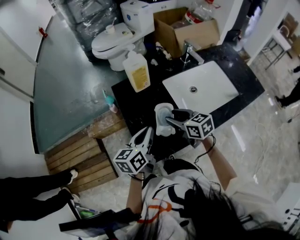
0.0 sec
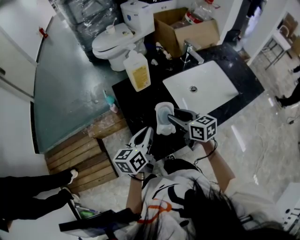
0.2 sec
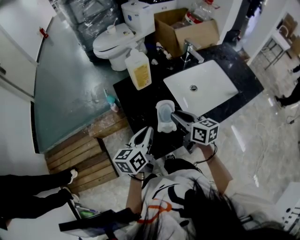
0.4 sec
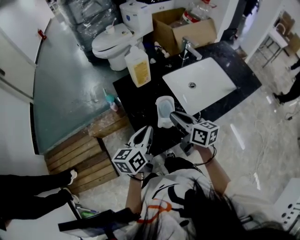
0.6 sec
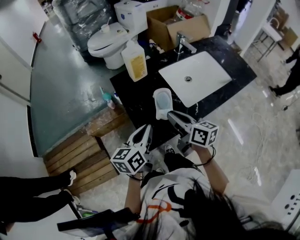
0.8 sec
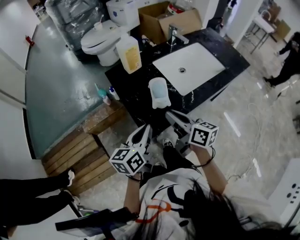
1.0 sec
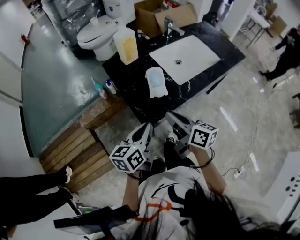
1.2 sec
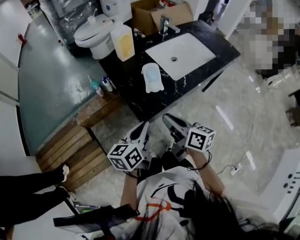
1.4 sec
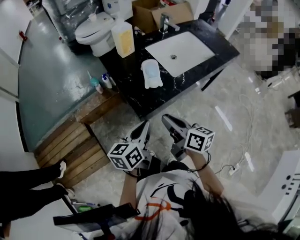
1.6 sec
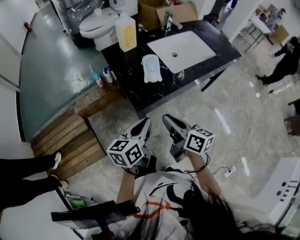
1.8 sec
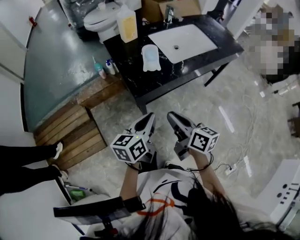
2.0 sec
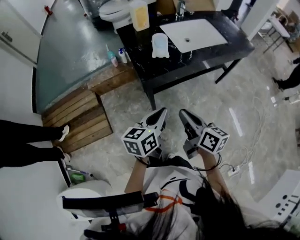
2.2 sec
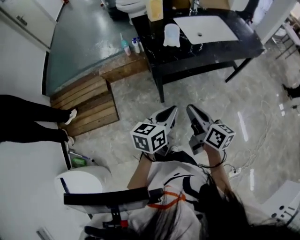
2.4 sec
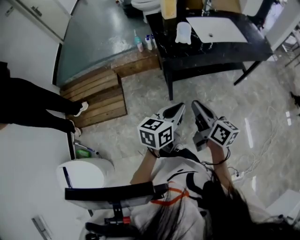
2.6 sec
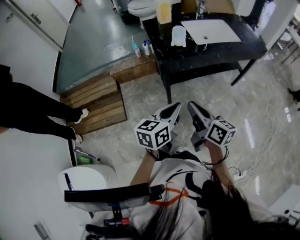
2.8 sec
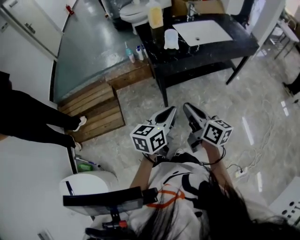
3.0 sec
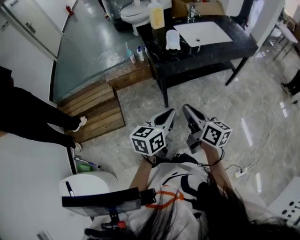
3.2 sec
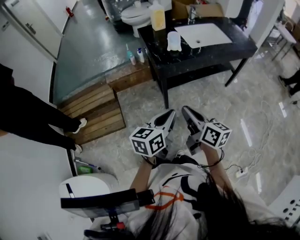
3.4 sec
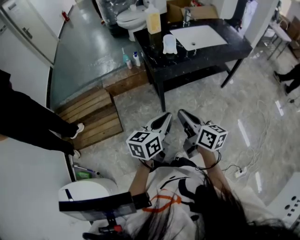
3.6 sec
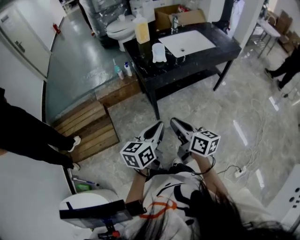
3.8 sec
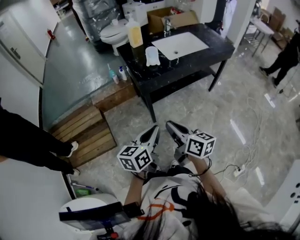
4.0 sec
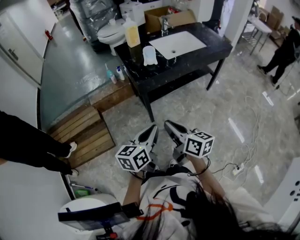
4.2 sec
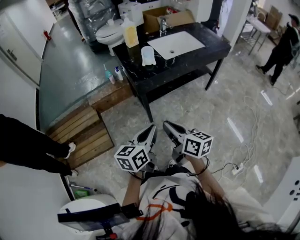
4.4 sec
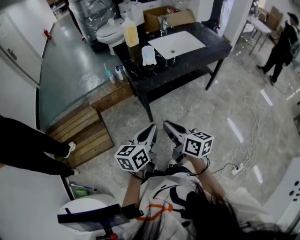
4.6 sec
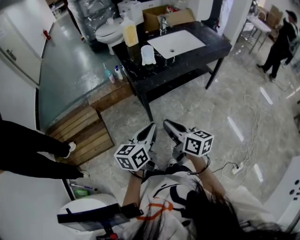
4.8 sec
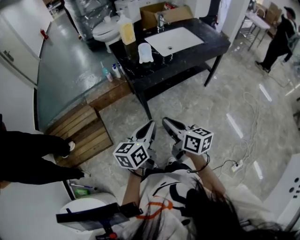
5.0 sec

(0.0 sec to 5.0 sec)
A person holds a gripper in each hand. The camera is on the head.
0.0 sec - 1.6 sec: The grippers both shift backward by about 25 cm. The right gripper turns by about 40 degrees, and closes its fingers.
1.6 sec - 3.4 sec: Both grippers travel together backward, roughly 25 cm.
3.4 sec - 5.0 sec: The grippers move only a little.

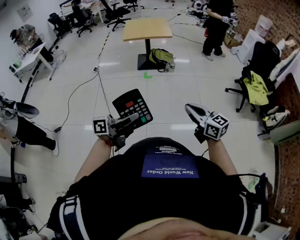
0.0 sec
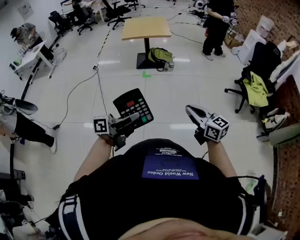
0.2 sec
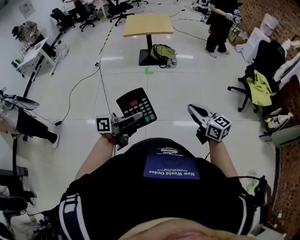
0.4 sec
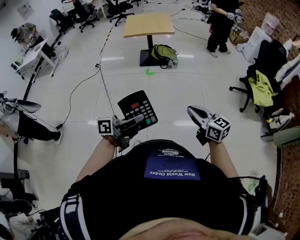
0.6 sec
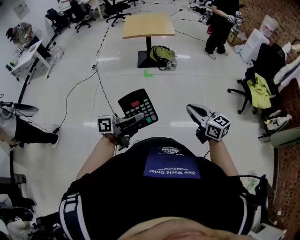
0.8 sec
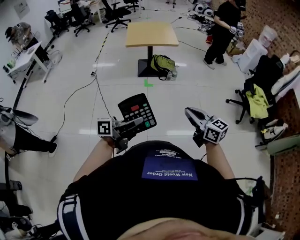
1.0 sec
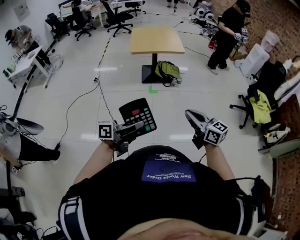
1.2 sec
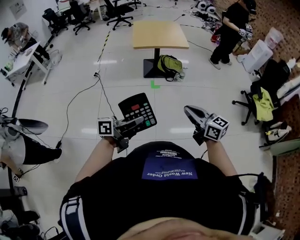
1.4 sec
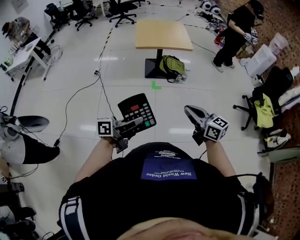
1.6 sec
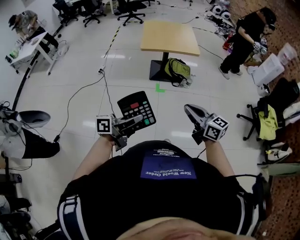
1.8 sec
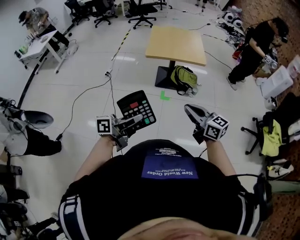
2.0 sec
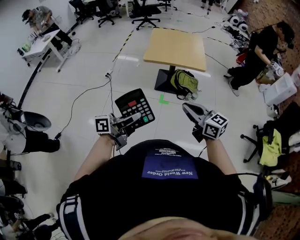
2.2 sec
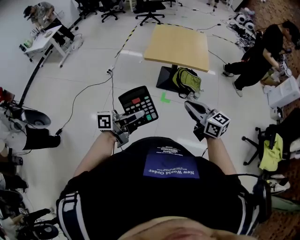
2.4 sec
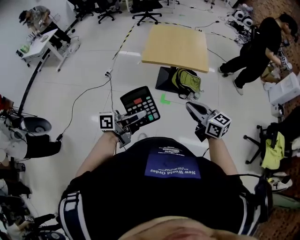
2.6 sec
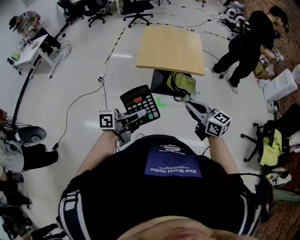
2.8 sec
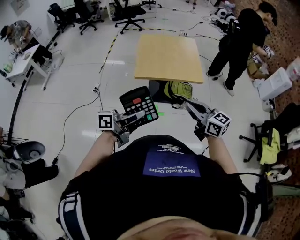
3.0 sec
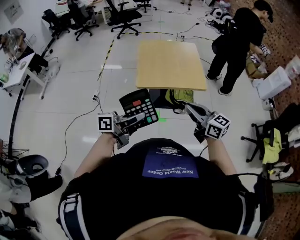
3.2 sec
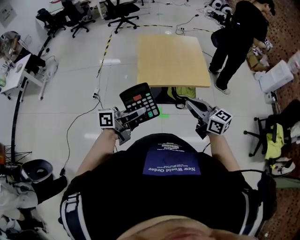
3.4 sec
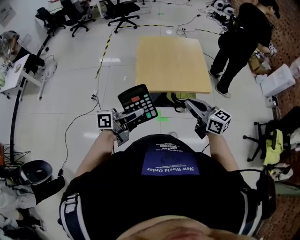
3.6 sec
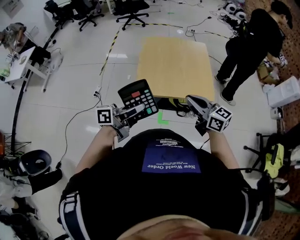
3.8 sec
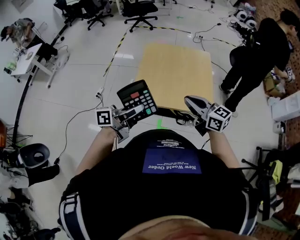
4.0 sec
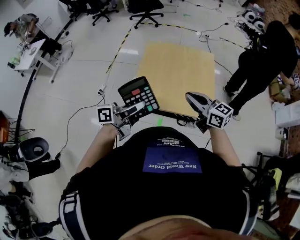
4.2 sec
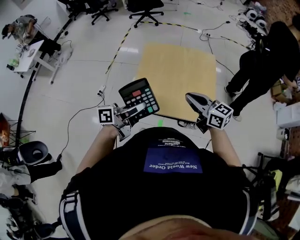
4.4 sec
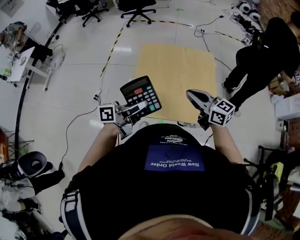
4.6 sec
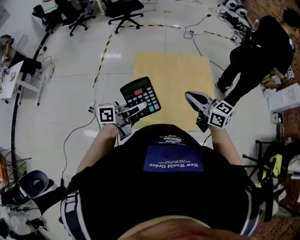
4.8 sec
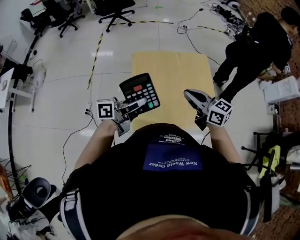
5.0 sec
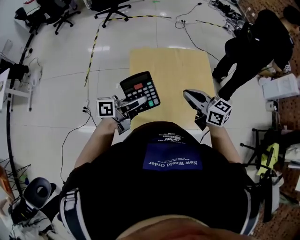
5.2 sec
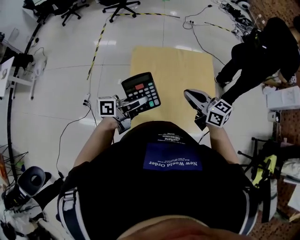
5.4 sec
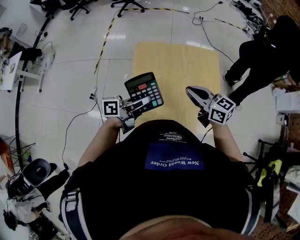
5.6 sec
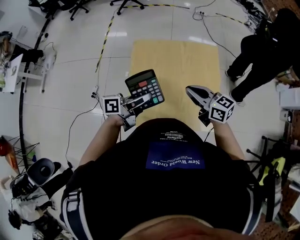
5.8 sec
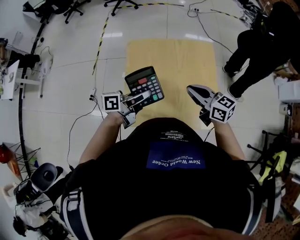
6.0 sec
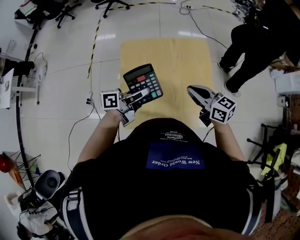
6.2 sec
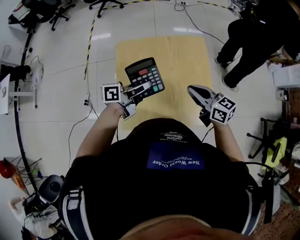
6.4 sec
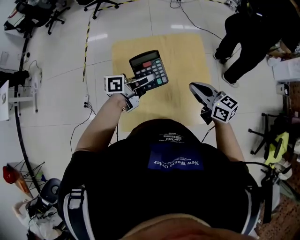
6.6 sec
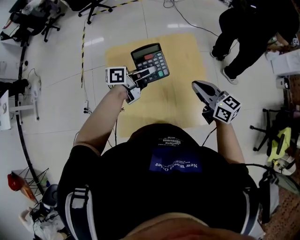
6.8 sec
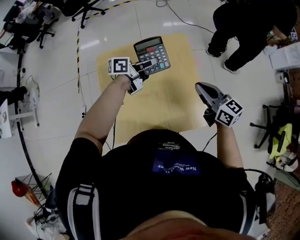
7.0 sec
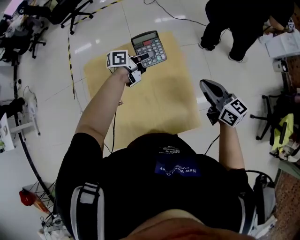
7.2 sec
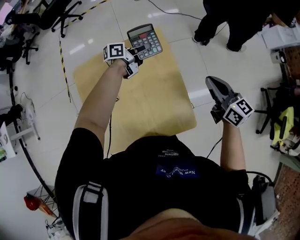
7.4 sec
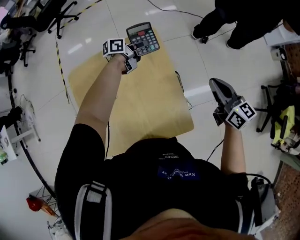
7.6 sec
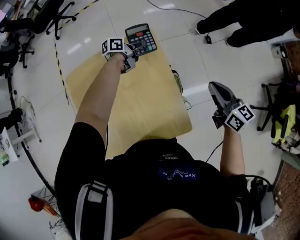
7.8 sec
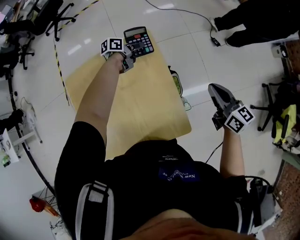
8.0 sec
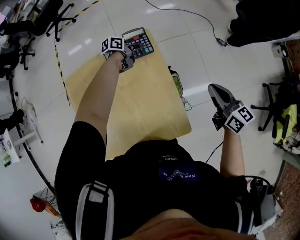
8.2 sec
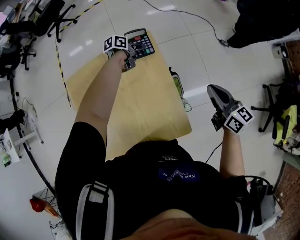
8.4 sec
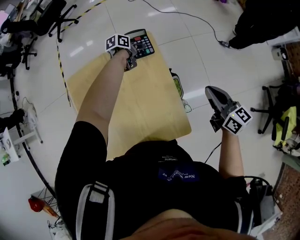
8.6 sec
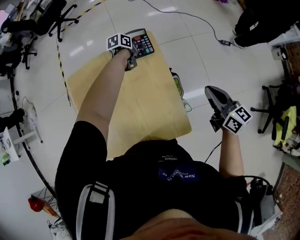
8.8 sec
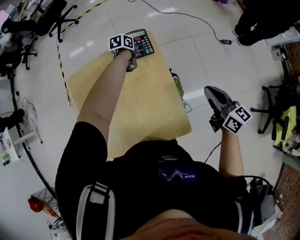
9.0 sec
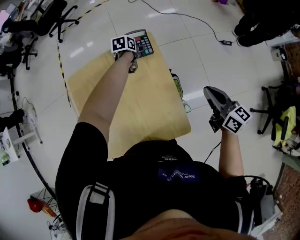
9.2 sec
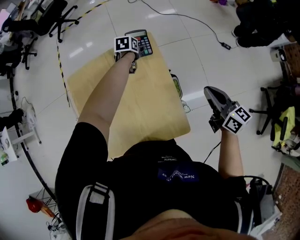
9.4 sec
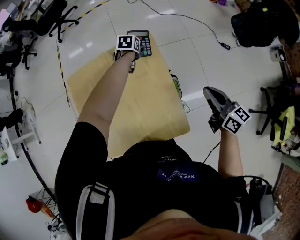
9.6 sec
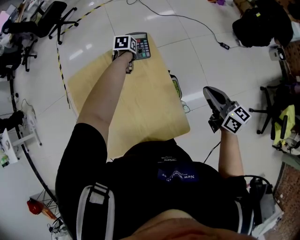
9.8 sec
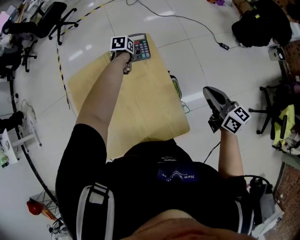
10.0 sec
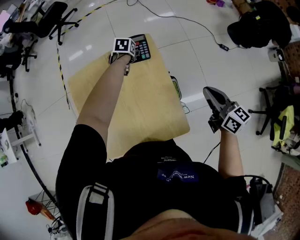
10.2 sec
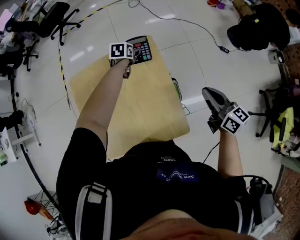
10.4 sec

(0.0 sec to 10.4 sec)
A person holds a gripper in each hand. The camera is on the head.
0.0 sec - 1.4 sec: Both grippers travel together to the left and forward, about 30 cm.
1.4 sec - 3.0 sec: The two grippers travel together, forward, some 50 cm.
3.0 sec - 4.4 sec: The grippers both shift forward by roughly 35 cm.
4.4 sec - 6.0 sec: Both grippers move forward, about 20 cm.
6.0 sec - 7.4 sec: The left gripper shifts by approximately 40 cm; the right gripper moves approximately 35 cm, and swivels approximately 30 degrees.
7.4 sec - 9.0 sec: The left gripper moves downward and forward, roughly 15 cm, tilts its fingers roughly 40 degrees downward, and opens its fingers; the right gripper ends up about 5 cm from where it was.
9.0 sec - 10.4 sec: The left gripper ends up some 5 cm from where it was, and changes its angle by some 20 degrees.

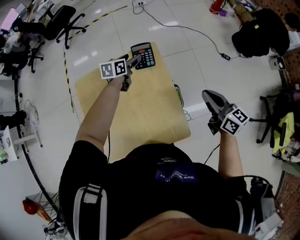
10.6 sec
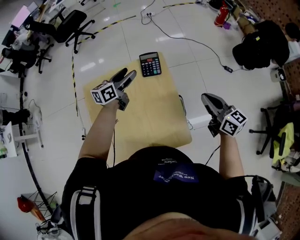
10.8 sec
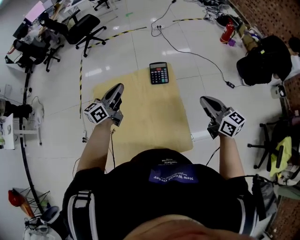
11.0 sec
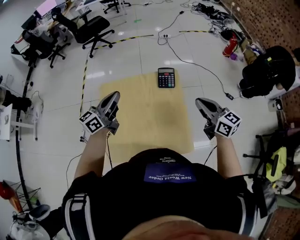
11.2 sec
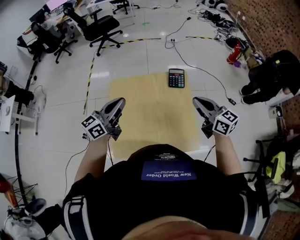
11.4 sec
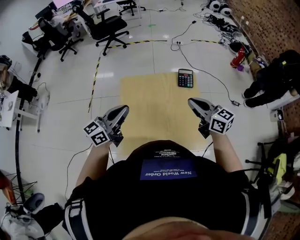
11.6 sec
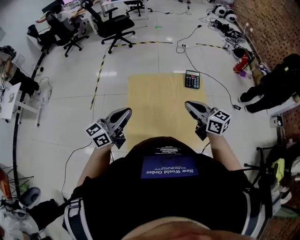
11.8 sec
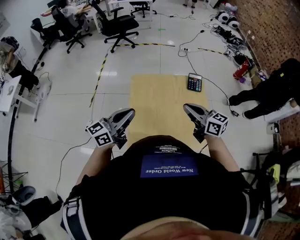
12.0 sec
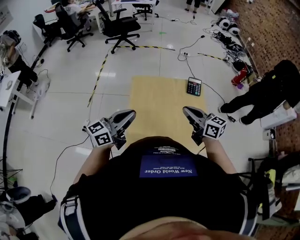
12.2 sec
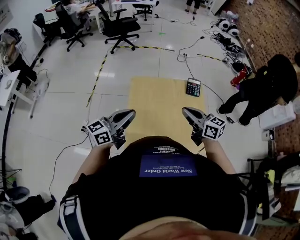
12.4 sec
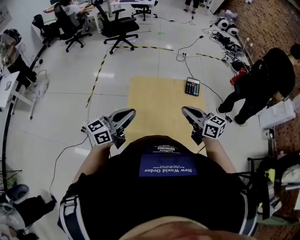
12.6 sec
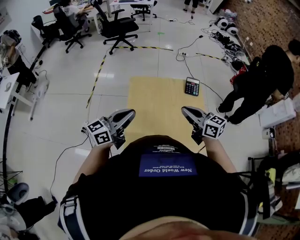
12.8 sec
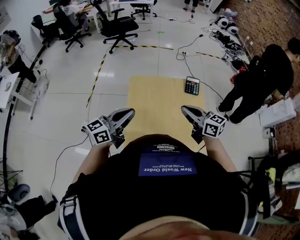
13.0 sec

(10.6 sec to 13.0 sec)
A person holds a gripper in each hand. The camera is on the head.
10.6 sec - 11.8 sec: The left gripper travels backward, to the left and upward by about 60 cm, points its fingers approximately 40 degrees further upward, and closes. The right gripper moves to the left, approximately 35 cm, and turns by about 30 degrees.
11.8 sec - 13.0 sec: The grippers make only small movements.

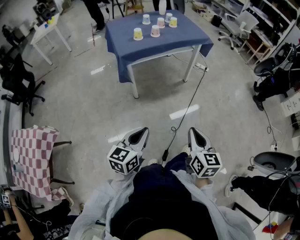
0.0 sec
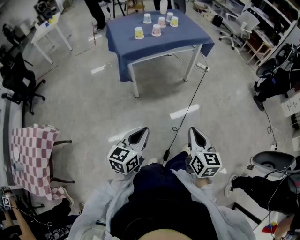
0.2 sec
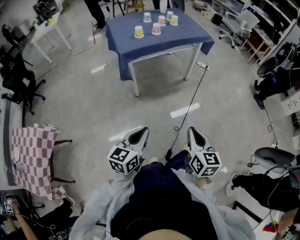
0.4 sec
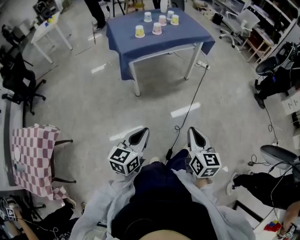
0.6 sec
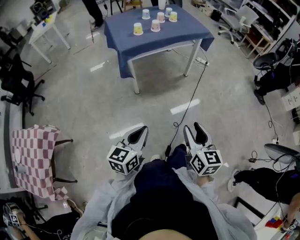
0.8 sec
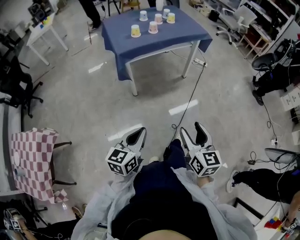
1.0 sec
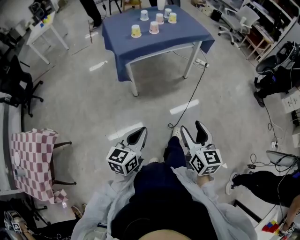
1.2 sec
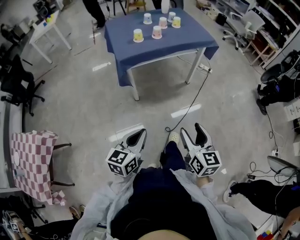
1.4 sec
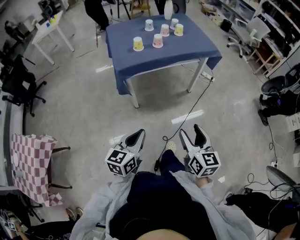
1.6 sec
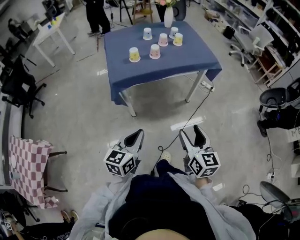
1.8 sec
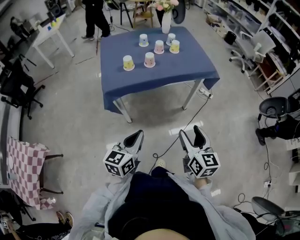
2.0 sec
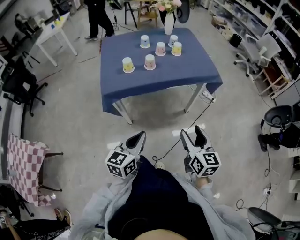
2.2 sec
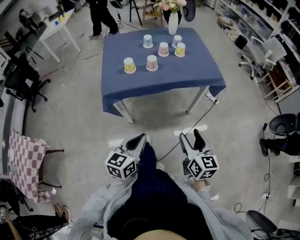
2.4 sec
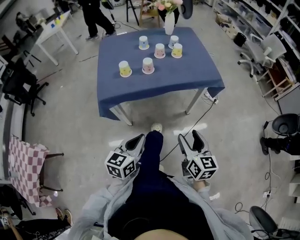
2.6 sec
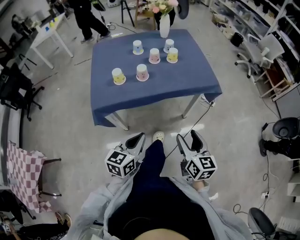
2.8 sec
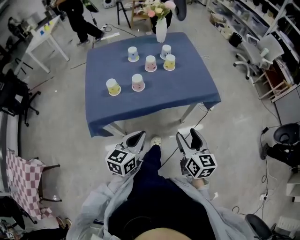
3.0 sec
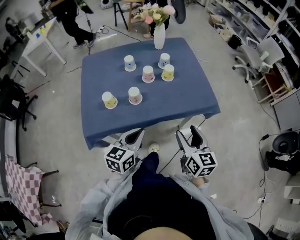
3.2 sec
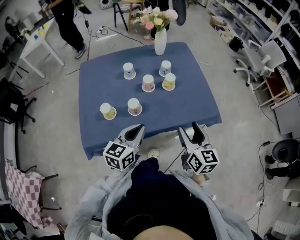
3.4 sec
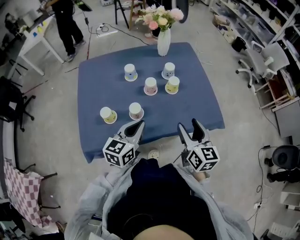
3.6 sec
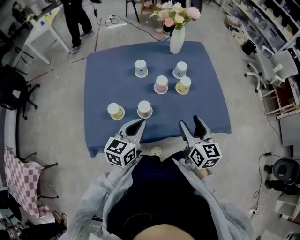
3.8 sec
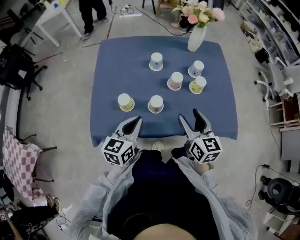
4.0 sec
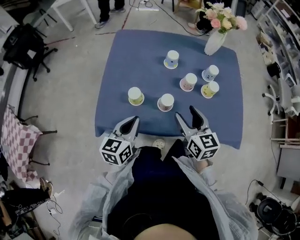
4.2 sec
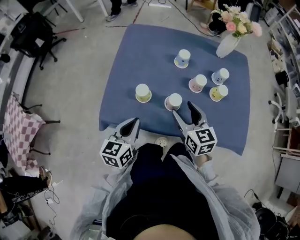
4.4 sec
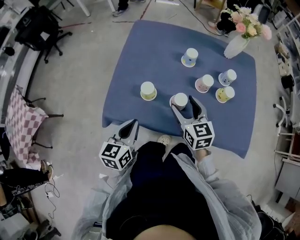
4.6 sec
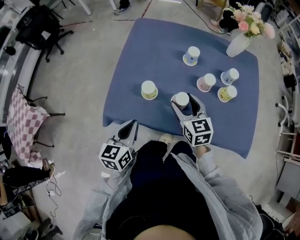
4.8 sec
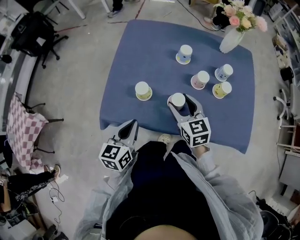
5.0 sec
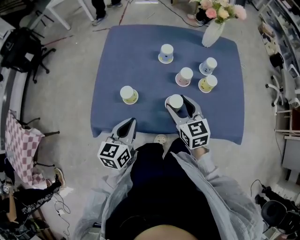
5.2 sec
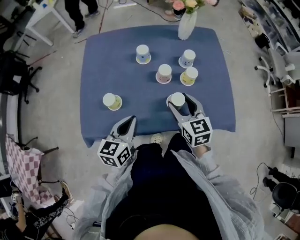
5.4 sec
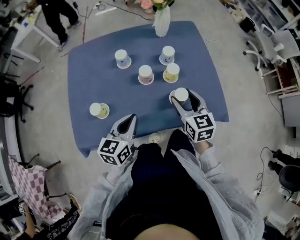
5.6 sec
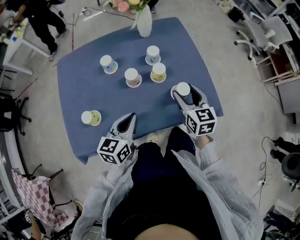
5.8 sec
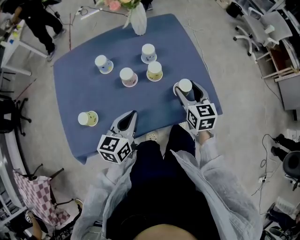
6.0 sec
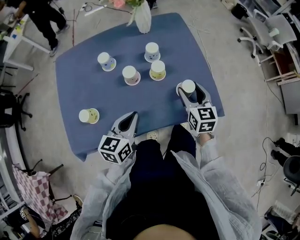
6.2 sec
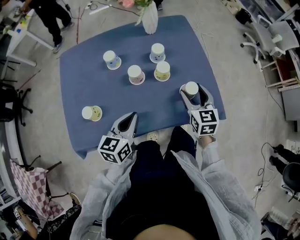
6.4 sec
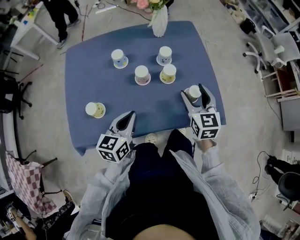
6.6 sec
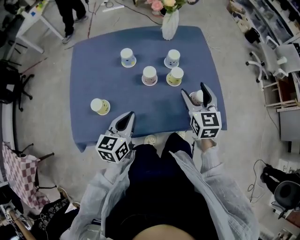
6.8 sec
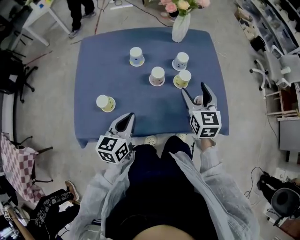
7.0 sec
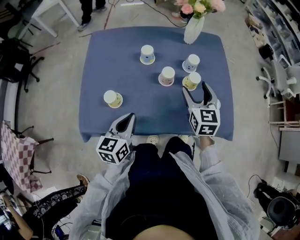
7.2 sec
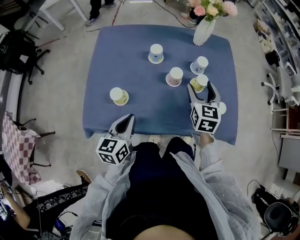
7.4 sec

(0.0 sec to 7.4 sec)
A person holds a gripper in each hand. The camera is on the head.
0.0 sec - 1.4 sec: The two grippers go roughly 10 cm forward. The right gripper opens up.
1.4 sec - 3.0 sec: Both grippers are carried forward, approximately 50 cm.
3.0 sec - 4.4 sec: The right gripper shifts by approximately 35 cm, and rotates approximately 40 degrees. Meanwhile the left gripper moves some 20 cm, and changes its angle by approximately 30 degrees.
4.4 sec - 6.0 sec: The left gripper changes place by roughly 20 cm, and changes its angle by approximately 30 degrees, while the right gripper shifts by some 30 cm, and rotates about 30 degrees.
6.0 sec - 7.4 sec: The left gripper goes some 15 cm to the left and backward, and swivels roughly 20 degrees; the right gripper moves to the left, roughly 15 cm.
